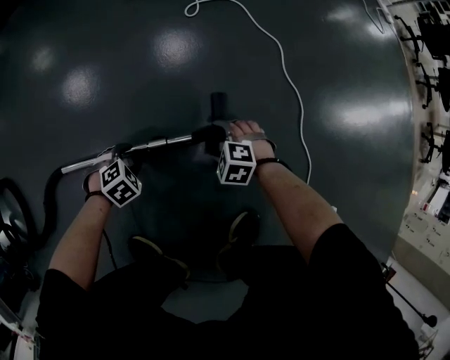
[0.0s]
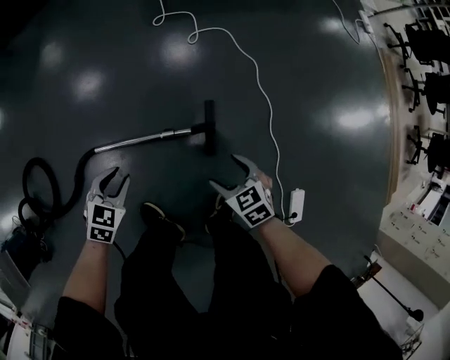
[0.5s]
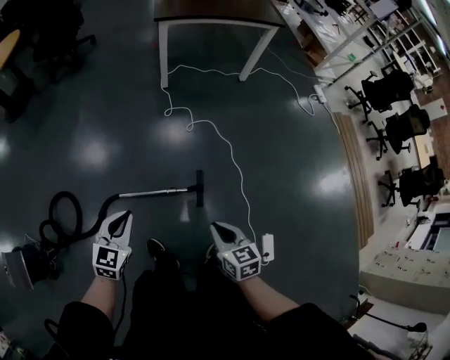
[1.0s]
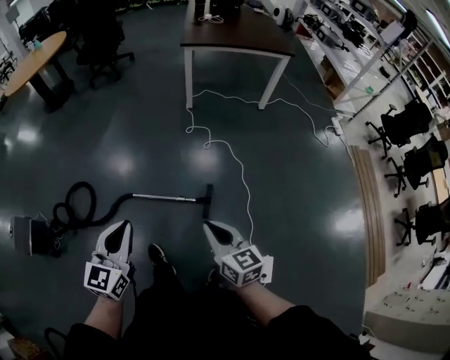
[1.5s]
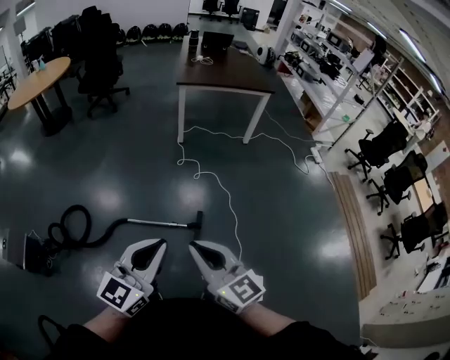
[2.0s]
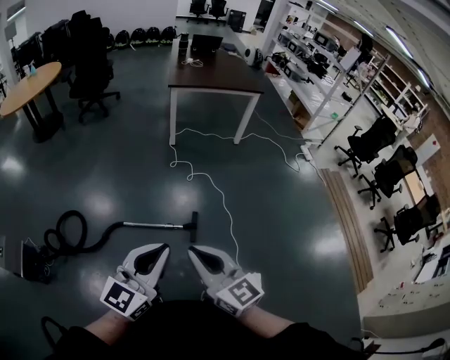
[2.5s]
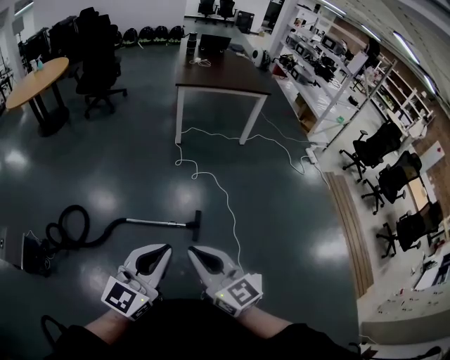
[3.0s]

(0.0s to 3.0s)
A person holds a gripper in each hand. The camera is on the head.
0.0s - 1.5s: The two grippers go some 80 cm upward. The right gripper angles its fingers upward, by about 50 degrees, and closes up. Meanwhile the left gripper points its fingers about 60 degrees further upward, and closes.
1.5s - 3.0s: The left gripper shifts about 20 cm backward, upward and to the right, and swivels roughly 20 degrees; the right gripper is displaced upward, backward and to the left by approximately 20 cm, and changes its angle by approximately 20 degrees.

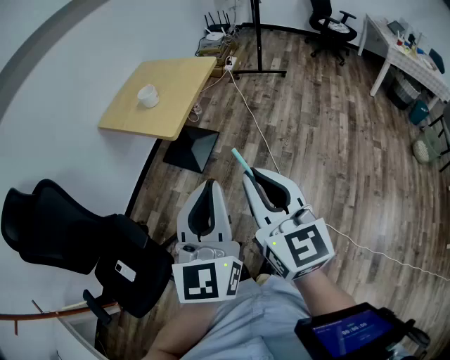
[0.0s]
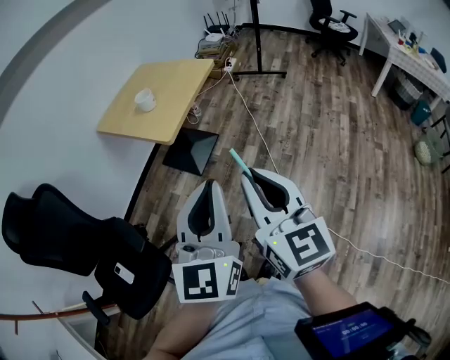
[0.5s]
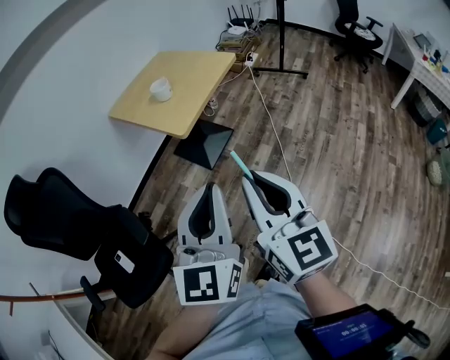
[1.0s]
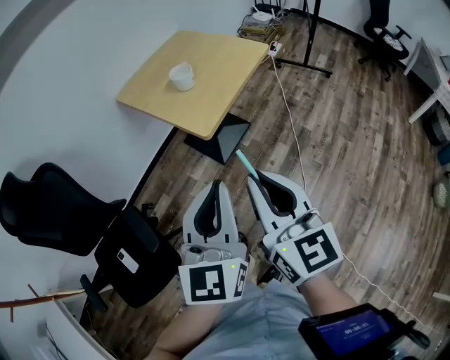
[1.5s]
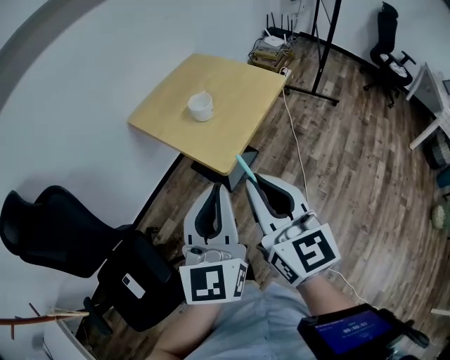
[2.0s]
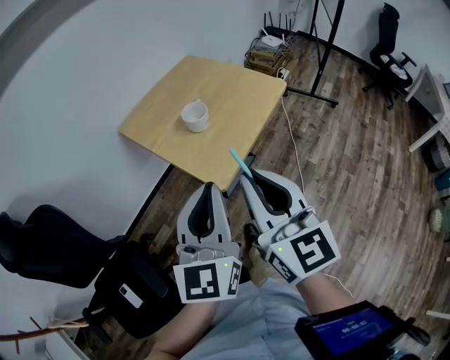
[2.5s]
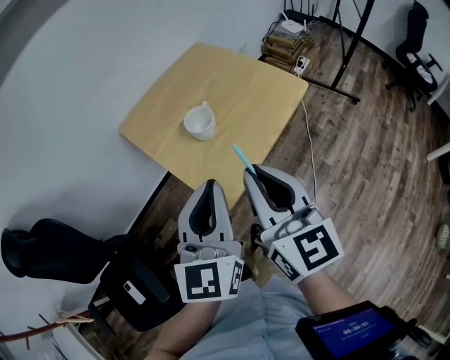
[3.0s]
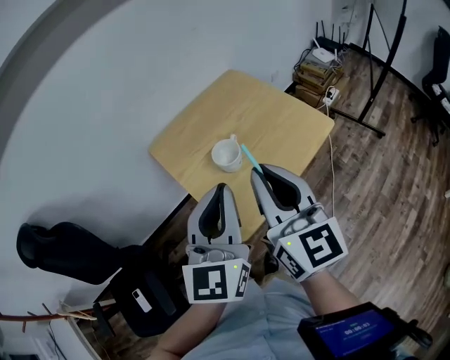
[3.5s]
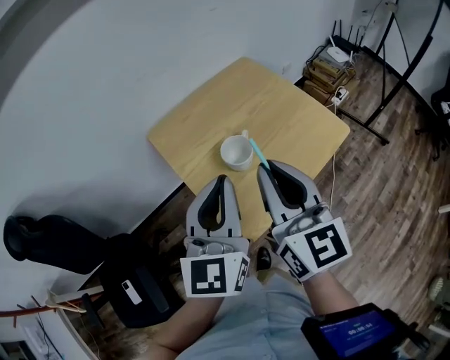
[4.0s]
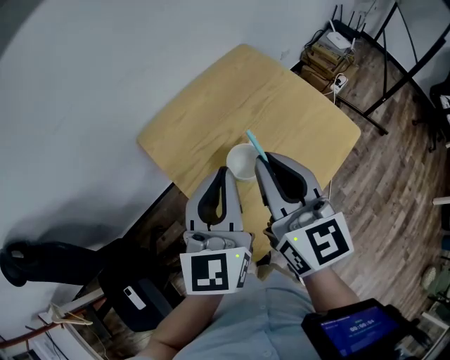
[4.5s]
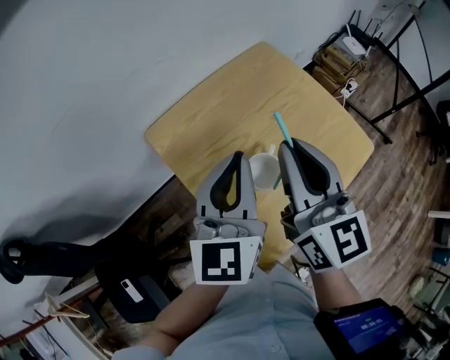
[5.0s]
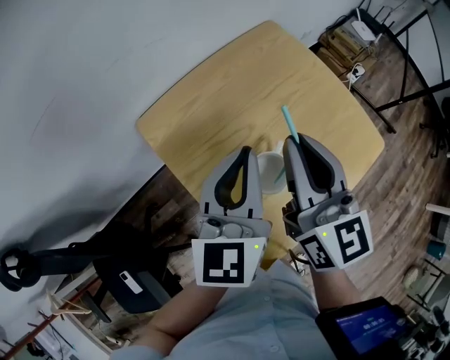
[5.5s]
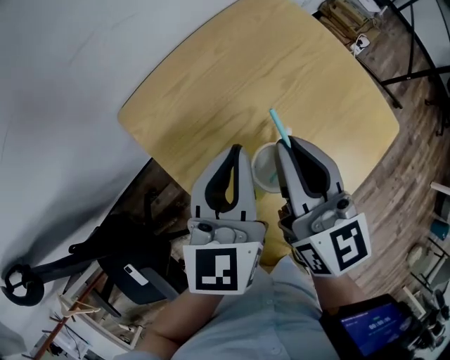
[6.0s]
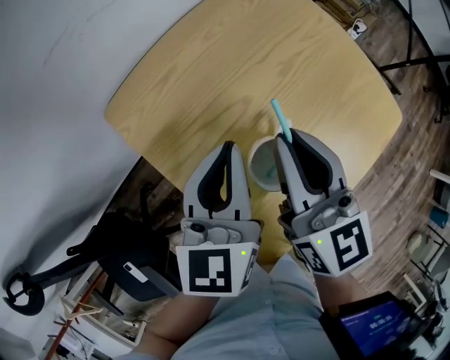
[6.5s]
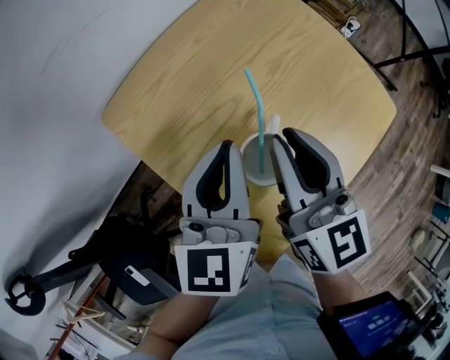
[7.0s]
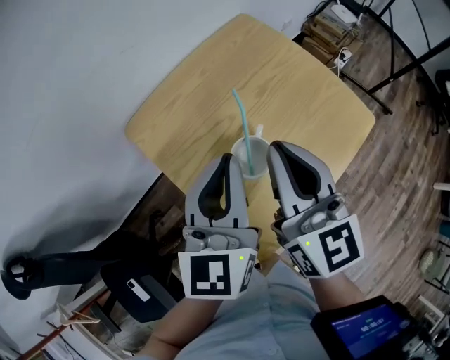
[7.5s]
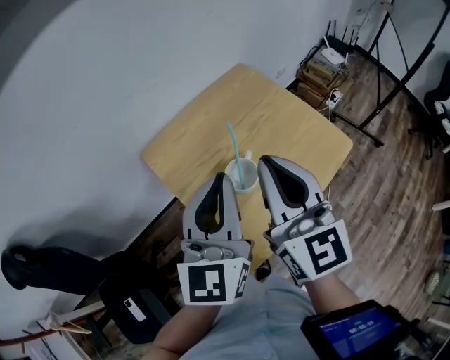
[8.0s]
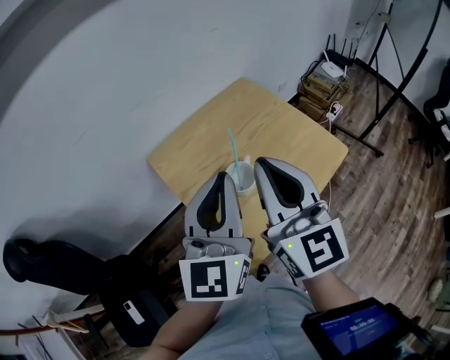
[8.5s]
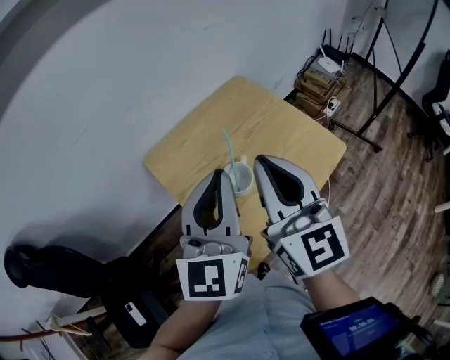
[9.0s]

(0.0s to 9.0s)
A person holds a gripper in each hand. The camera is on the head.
0.0s - 2.0s: Both grippers travel together forward and to the left, approximately 30 cm.
2.0s - 4.5s: Both grippers are carried forward, about 40 cm.
4.5s - 7.0s: Both grippers travel together downward and forward, some 15 cm.
7.0s - 9.0s: The two grippers go some 25 cm upward and backward. The right gripper turns by approximately 20 degrees. Meanwhile the left gripper turns by some 30 degrees.

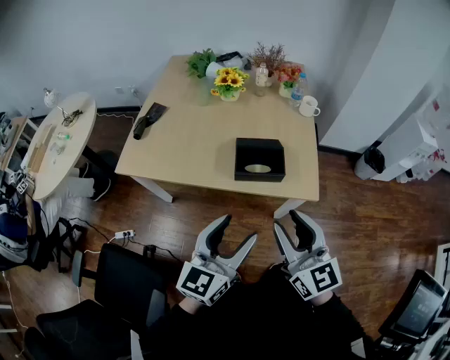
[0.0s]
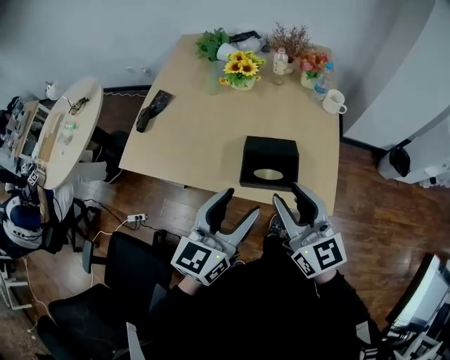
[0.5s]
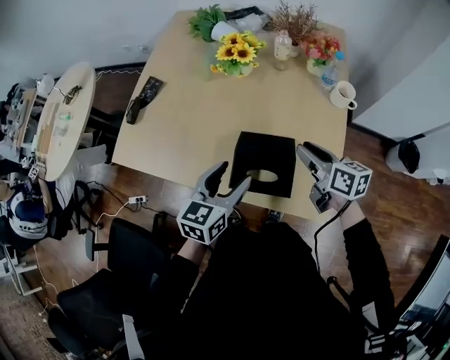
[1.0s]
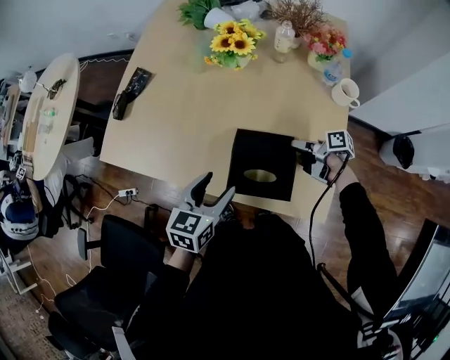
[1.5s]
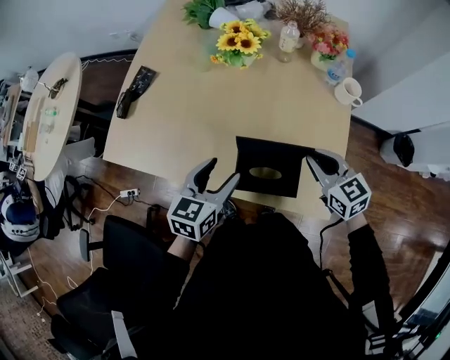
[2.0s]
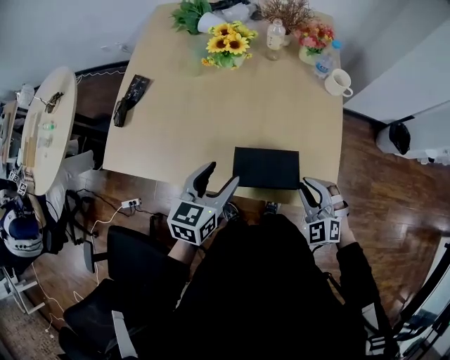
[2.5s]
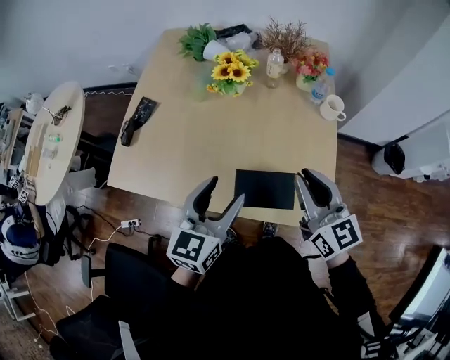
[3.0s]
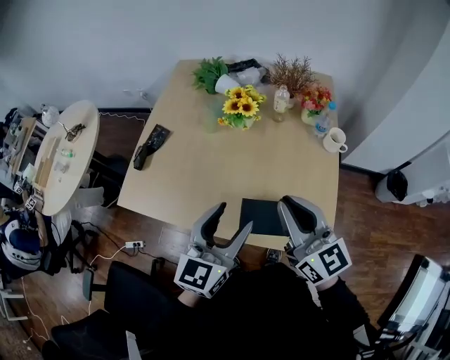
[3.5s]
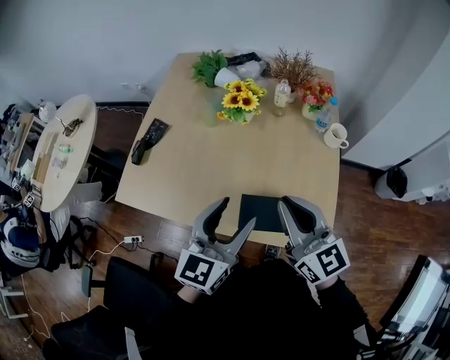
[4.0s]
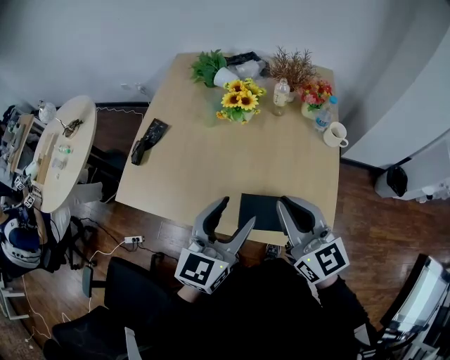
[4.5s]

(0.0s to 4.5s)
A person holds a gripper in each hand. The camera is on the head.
0.0s - 2.0s: The right gripper changes place by roughly 40 cm, swivels approximately 30 degrees, and closes its fingers; the left gripper changes place by roughly 35 cm, and turns by roughly 30 degrees.
2.0s - 4.5s: The left gripper goes approximately 15 cm upward, and turns by some 20 degrees, while the right gripper heads upward and to the left, covering some 20 cm, and turns by about 30 degrees.

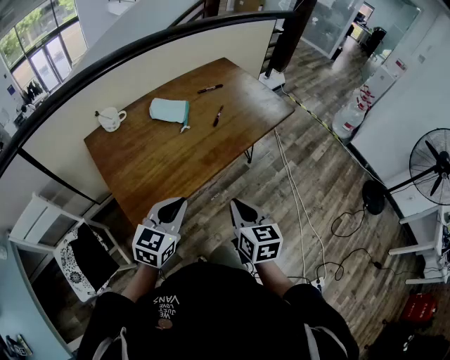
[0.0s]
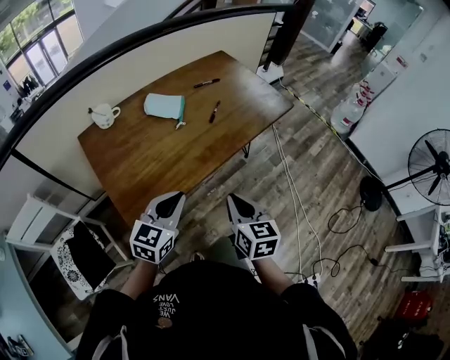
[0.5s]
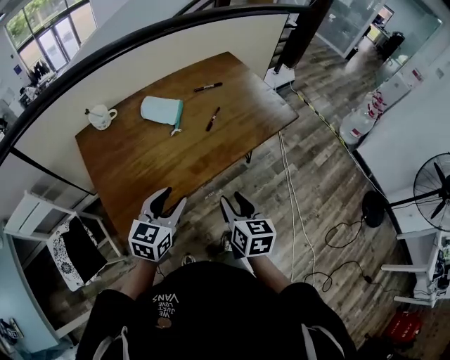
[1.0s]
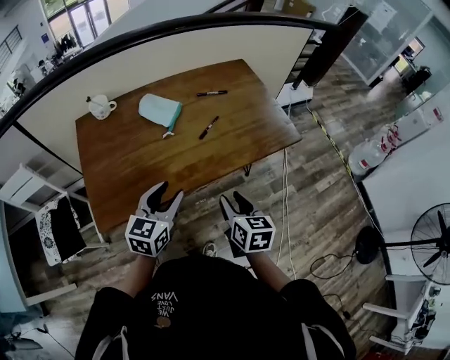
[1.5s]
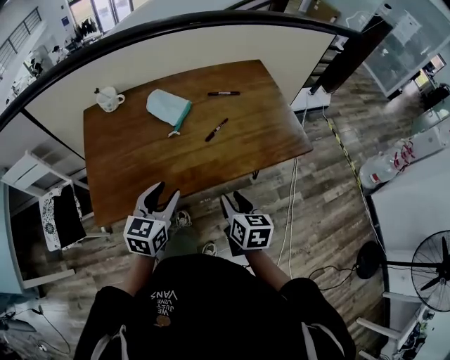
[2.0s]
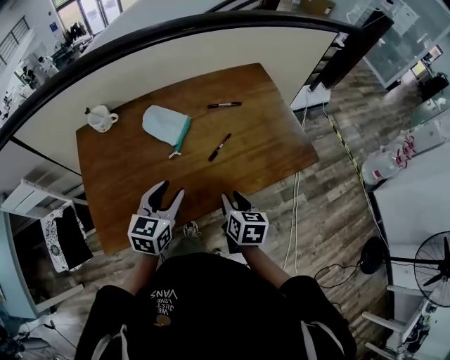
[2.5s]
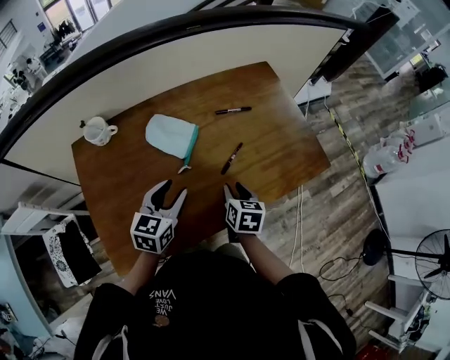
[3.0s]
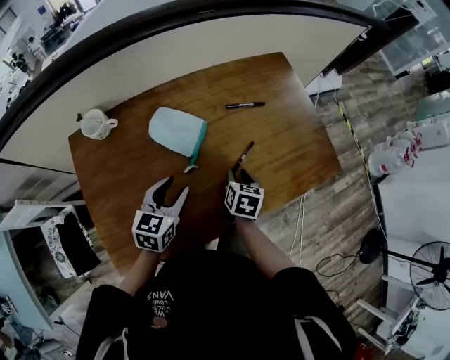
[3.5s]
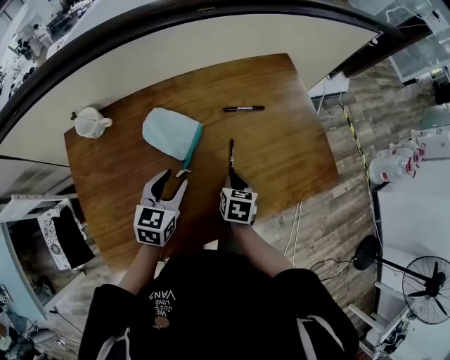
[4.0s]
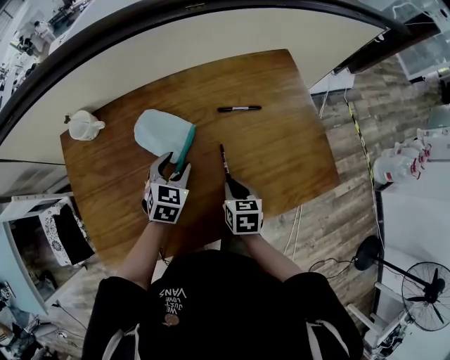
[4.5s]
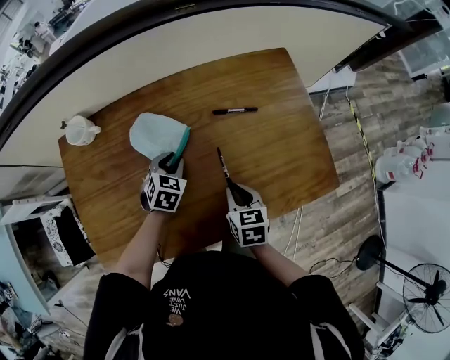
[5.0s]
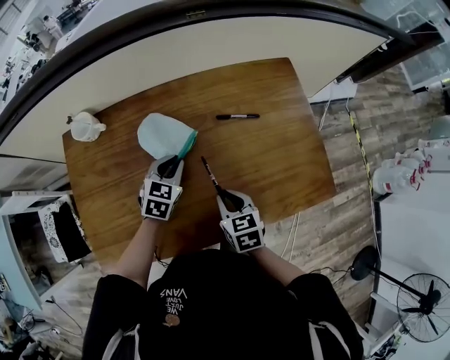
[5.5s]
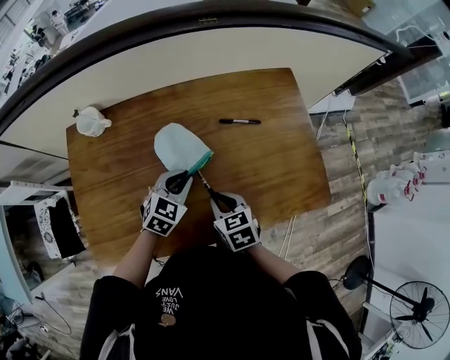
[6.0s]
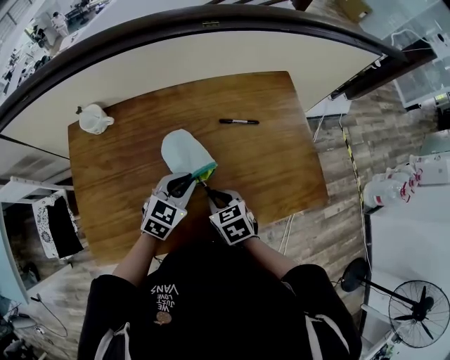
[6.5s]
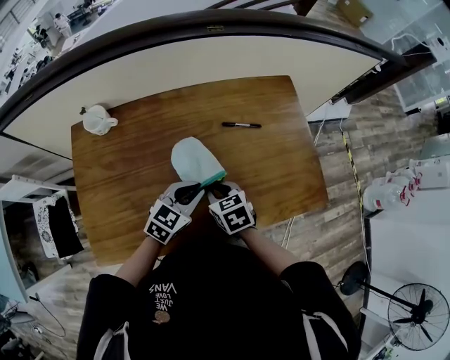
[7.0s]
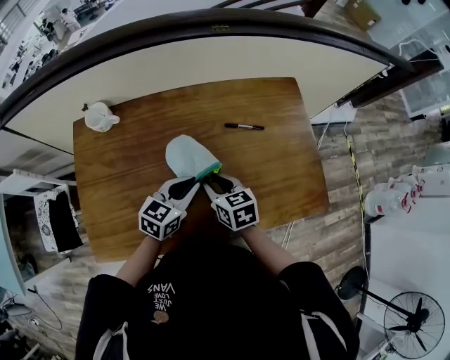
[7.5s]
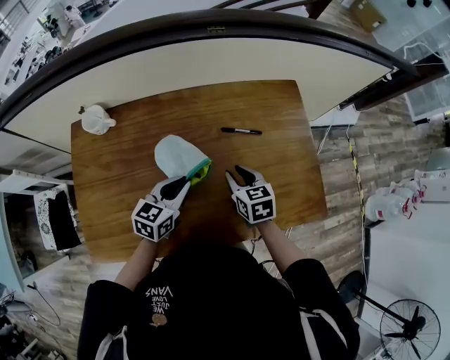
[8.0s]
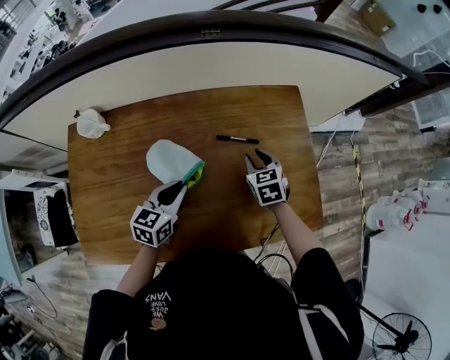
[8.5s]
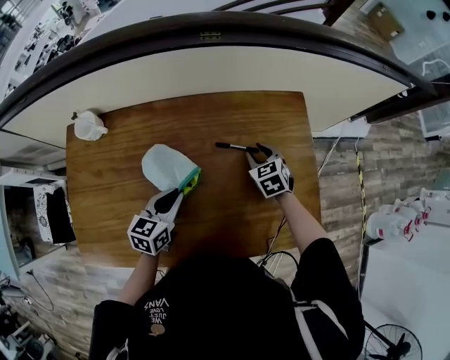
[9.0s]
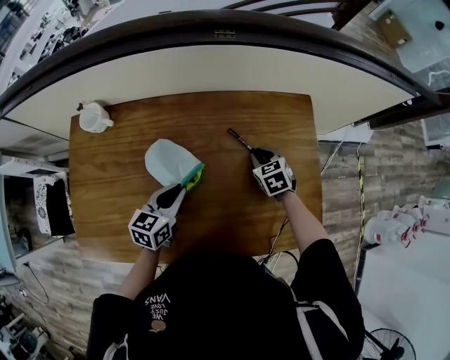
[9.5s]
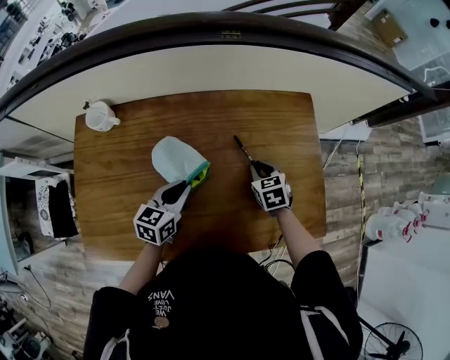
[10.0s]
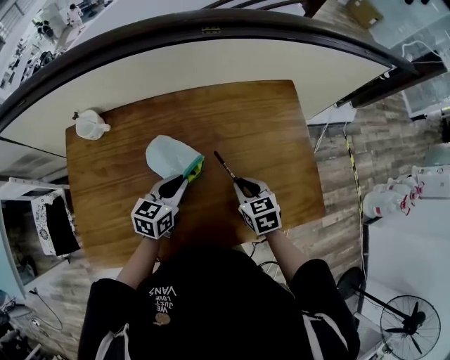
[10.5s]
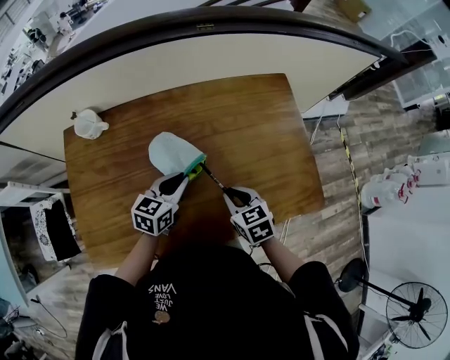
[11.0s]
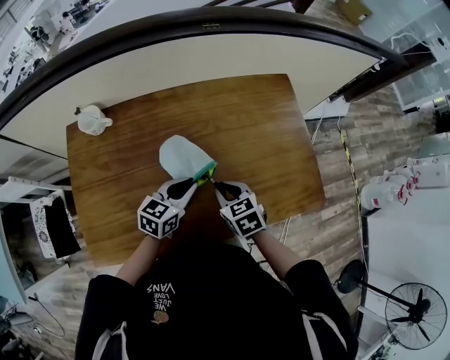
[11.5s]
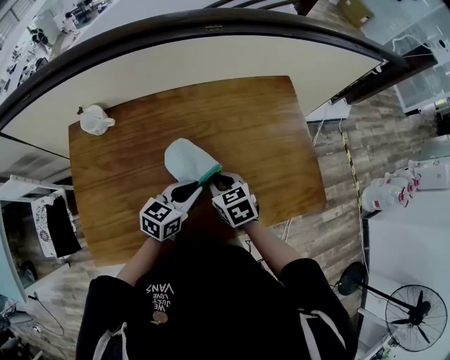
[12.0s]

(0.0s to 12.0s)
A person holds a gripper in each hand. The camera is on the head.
0.0s - 2.0s: Both grippers move forward and to the right, about 20 cm. The left gripper turns by approximately 30 degrees, and opens, while the right gripper changes its angle by roughly 20 degrees, and opens.
2.0s - 4.0s: The right gripper heads forward and downward, covering roughly 25 cm, and changes its angle by roughly 20 degrees, while the left gripper is displaced forward by some 25 cm.
4.0s - 6.0s: The right gripper shifts some 5 cm upward, and swivels approximately 40 degrees. Meanwhile the left gripper travels to the right by some 5 cm, travels downward and back again, about 10 cm each way, and closes its fingers.
6.0s - 8.0s: The left gripper changes its angle by about 30 degrees. Meanwhile the right gripper goes roughly 10 cm forward and to the right.
8.0s - 10.0s: The right gripper travels forward, to the right and downward by approximately 10 cm.
10.0s - 12.0s: The right gripper goes about 20 cm to the left, backward and upward; the left gripper shifts roughly 5 cm backward.
